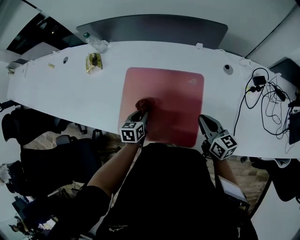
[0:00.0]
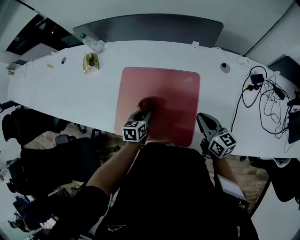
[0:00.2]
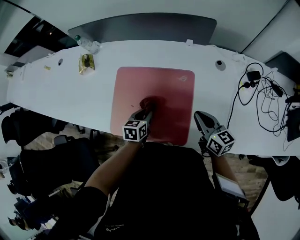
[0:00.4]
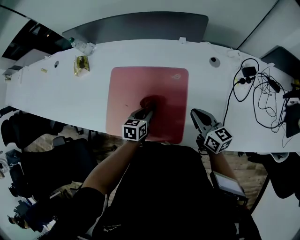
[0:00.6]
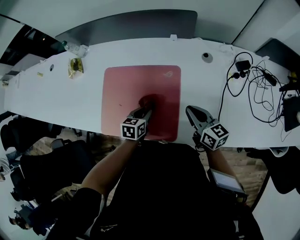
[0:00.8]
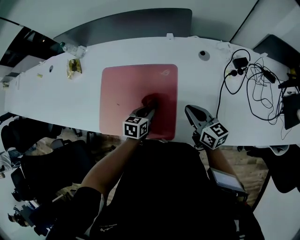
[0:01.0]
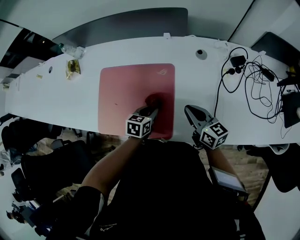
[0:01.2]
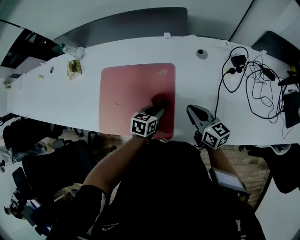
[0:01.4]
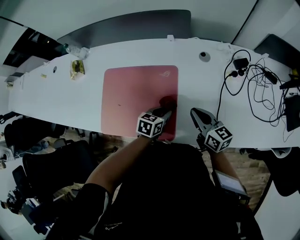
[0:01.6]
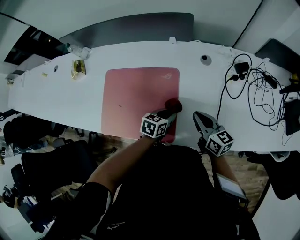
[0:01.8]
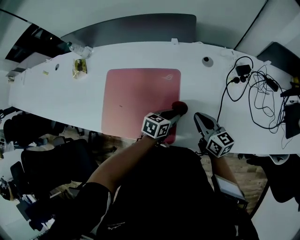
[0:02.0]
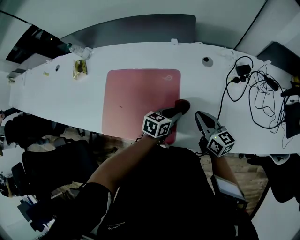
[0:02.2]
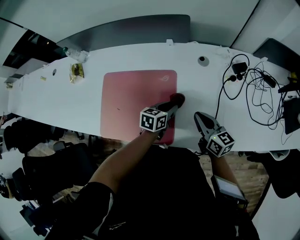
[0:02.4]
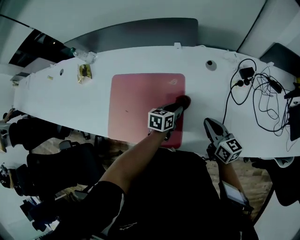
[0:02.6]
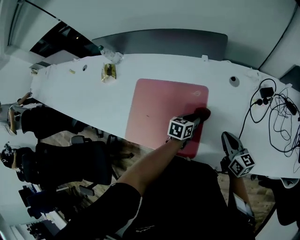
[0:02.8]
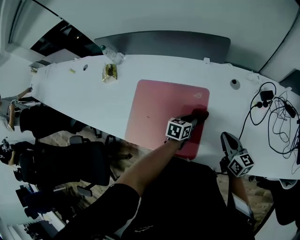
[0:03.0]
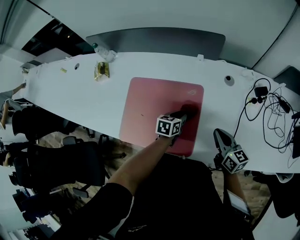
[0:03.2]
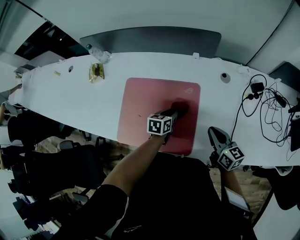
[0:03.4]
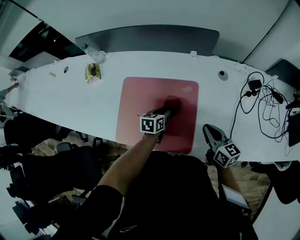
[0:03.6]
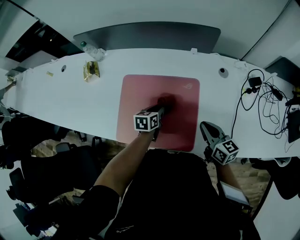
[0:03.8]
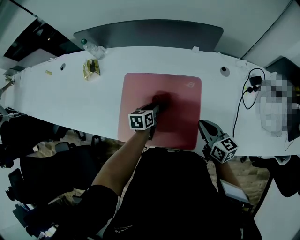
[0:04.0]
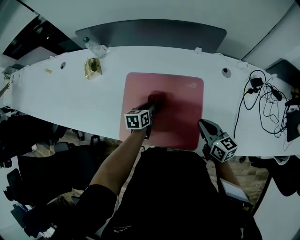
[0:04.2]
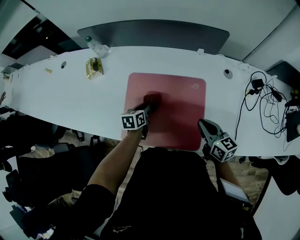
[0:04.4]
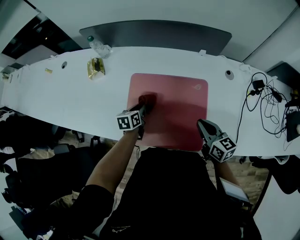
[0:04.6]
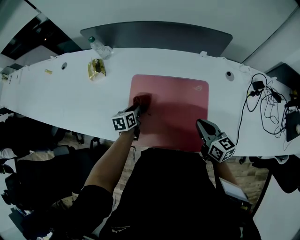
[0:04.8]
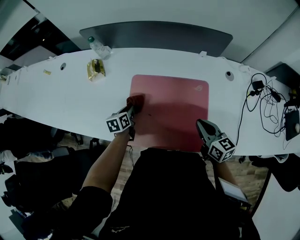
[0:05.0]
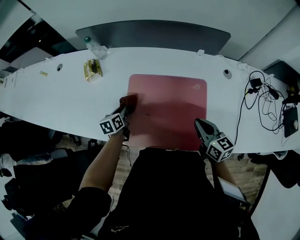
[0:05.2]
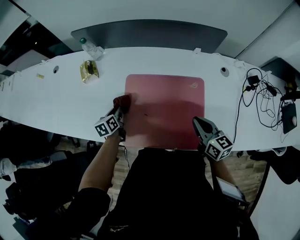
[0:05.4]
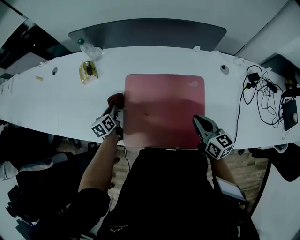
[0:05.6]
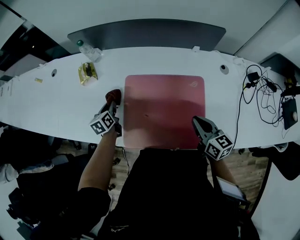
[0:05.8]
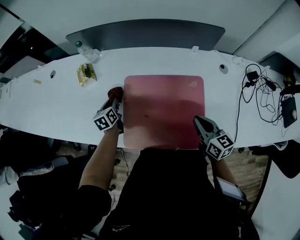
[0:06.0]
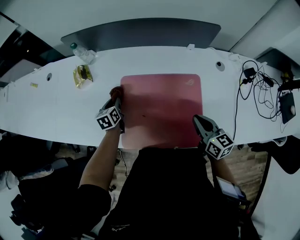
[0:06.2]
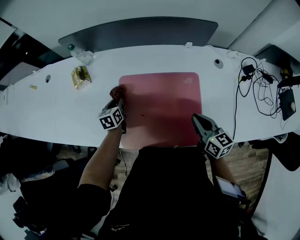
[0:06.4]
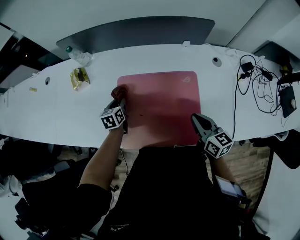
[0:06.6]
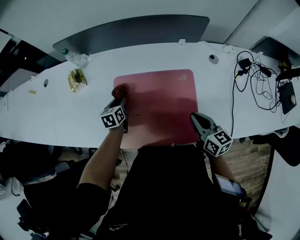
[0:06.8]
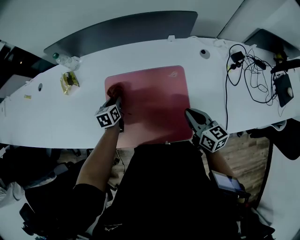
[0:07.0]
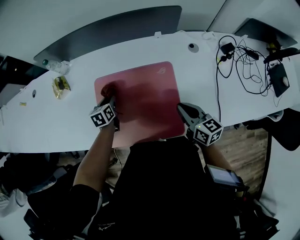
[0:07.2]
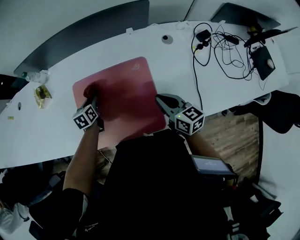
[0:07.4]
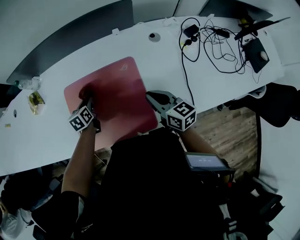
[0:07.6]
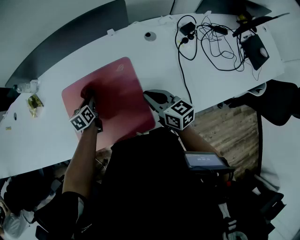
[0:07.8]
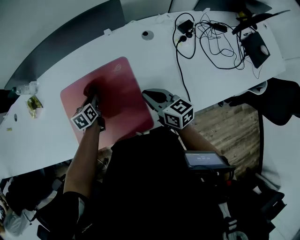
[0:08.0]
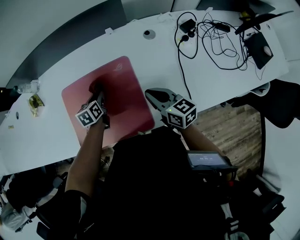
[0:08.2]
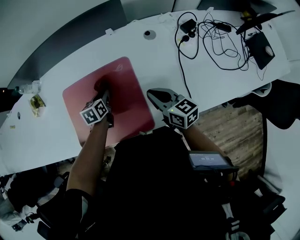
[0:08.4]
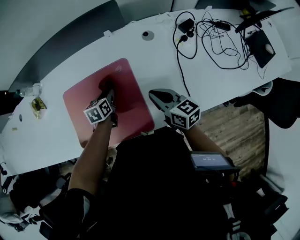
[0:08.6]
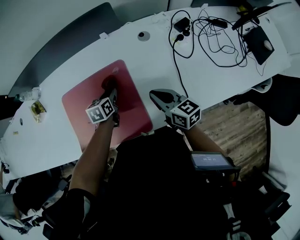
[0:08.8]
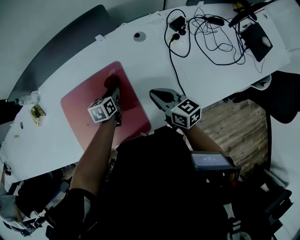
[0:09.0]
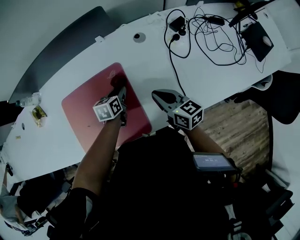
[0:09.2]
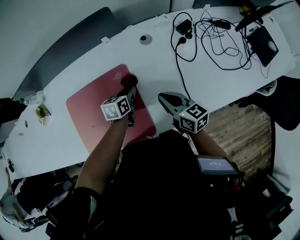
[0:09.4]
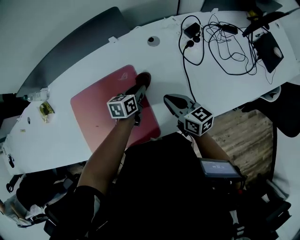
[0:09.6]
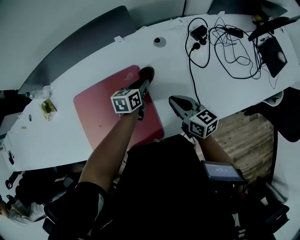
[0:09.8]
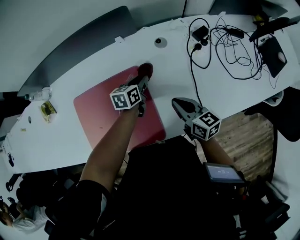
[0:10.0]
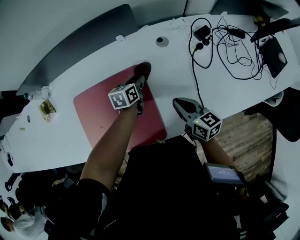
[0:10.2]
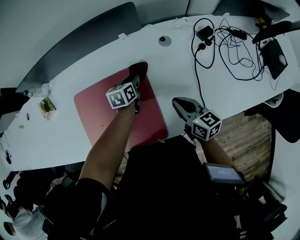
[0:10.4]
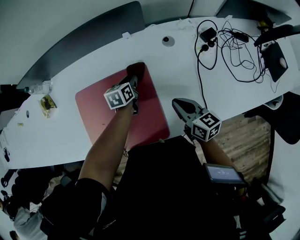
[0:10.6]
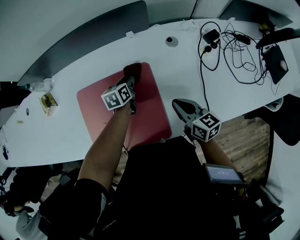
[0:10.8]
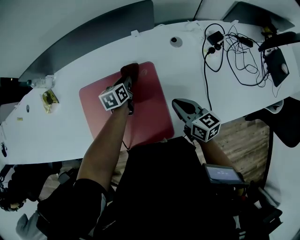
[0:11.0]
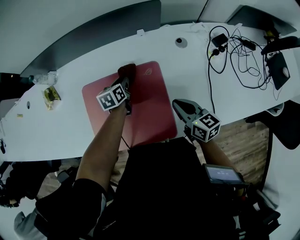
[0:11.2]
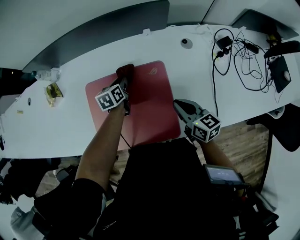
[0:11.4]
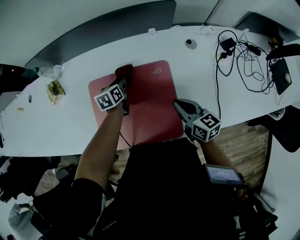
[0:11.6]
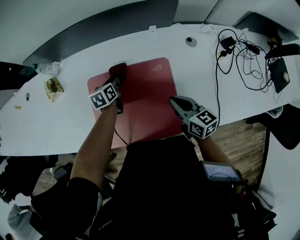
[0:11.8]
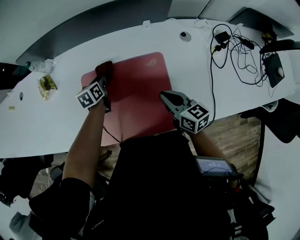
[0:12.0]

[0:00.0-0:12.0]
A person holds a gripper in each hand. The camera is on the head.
0:00.0 to 0:01.6: The left gripper shifts approximately 25 cm to the right, and swivels roughly 20 degrees; the right gripper travels to the right by some 10 cm.
0:01.6 to 0:03.0: The left gripper goes about 5 cm forward.
0:03.0 to 0:04.4: The left gripper is displaced to the left by approximately 25 cm; the right gripper travels to the left by roughly 15 cm.
0:04.4 to 0:06.0: The left gripper heads to the left and forward, covering about 20 cm.
0:06.0 to 0:07.6: The right gripper heads to the right, covering some 10 cm. Meanwhile the left gripper is displaced to the right by approximately 20 cm.
0:07.6 to 0:09.0: The right gripper heads to the right, covering roughly 10 cm. The left gripper moves to the right, about 20 cm.
0:09.0 to 0:10.4: The left gripper goes roughly 10 cm forward, and reaches about 10 cm to the right, then returns.
0:10.4 to 0:12.0: The left gripper moves to the left, about 25 cm. Meanwhile the right gripper shifts some 15 cm to the left.

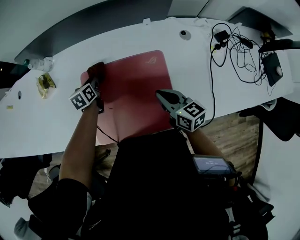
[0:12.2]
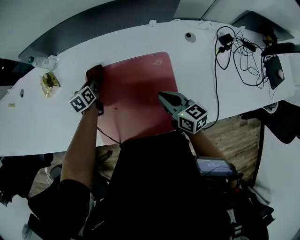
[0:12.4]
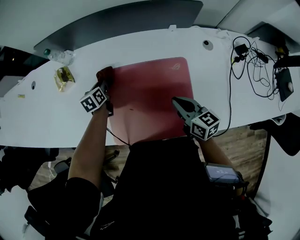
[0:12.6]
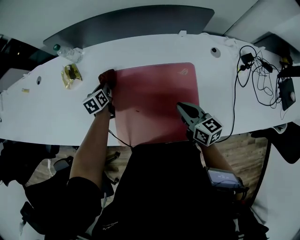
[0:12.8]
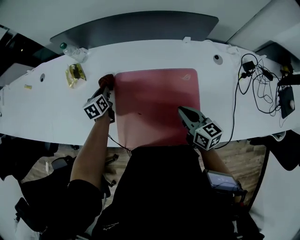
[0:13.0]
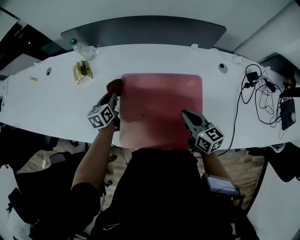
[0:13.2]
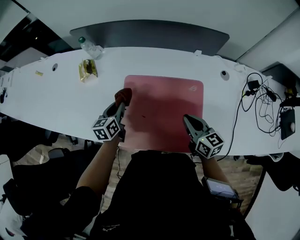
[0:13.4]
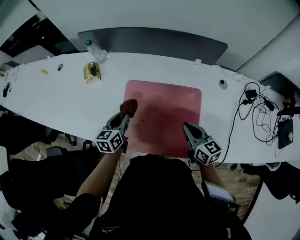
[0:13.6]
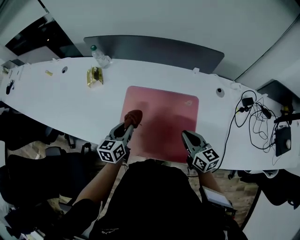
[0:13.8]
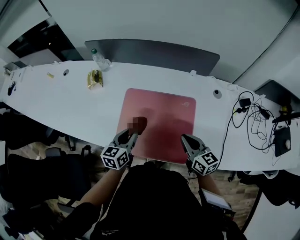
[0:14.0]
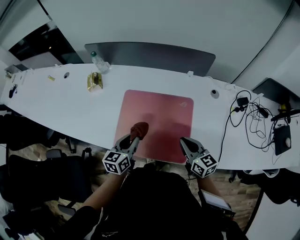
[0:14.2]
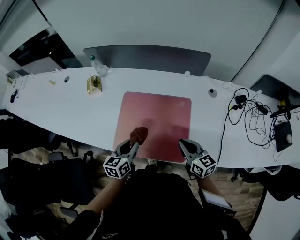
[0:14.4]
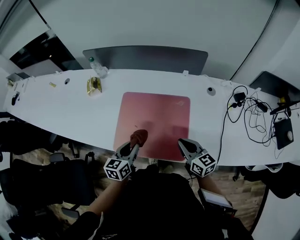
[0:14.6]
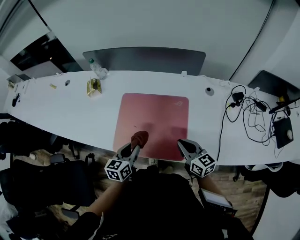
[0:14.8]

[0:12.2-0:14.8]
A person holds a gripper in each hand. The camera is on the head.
0:12.2 to 0:13.4: The left gripper goes roughly 15 cm backward, to the left and upward.
0:13.4 to 0:14.8: The left gripper shifts about 25 cm backward and to the right. The right gripper is displaced backward by about 10 cm.

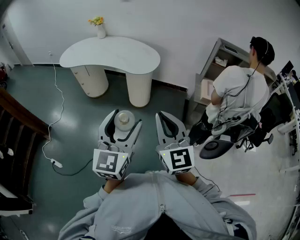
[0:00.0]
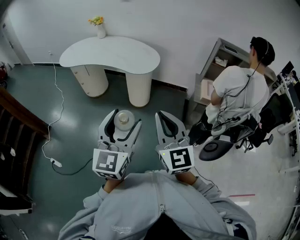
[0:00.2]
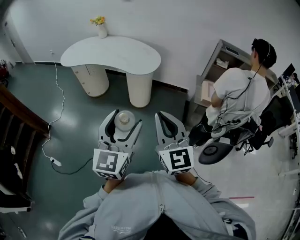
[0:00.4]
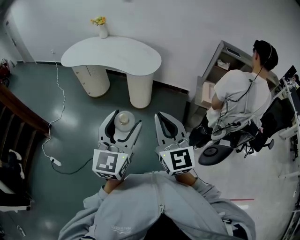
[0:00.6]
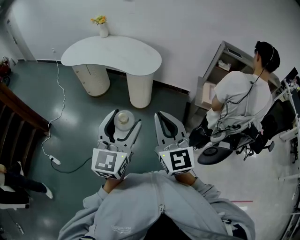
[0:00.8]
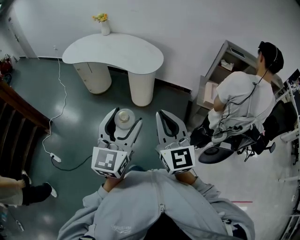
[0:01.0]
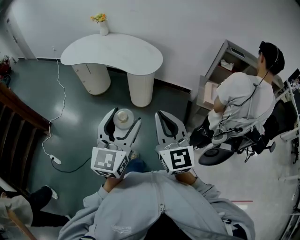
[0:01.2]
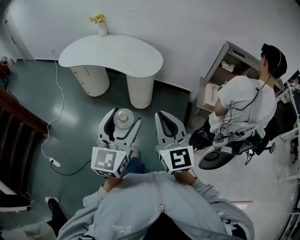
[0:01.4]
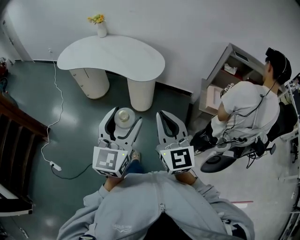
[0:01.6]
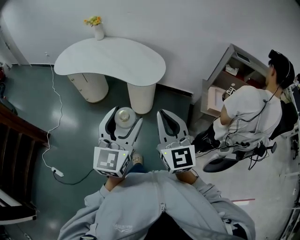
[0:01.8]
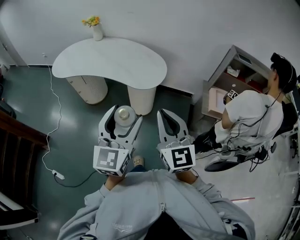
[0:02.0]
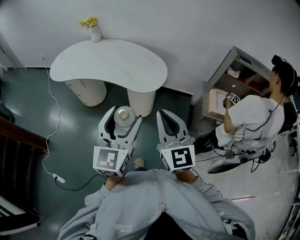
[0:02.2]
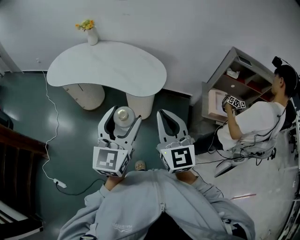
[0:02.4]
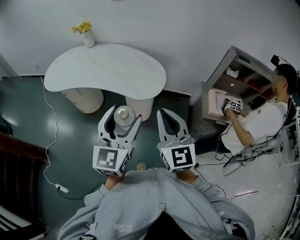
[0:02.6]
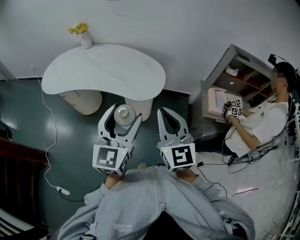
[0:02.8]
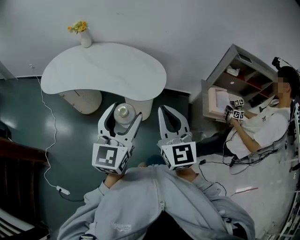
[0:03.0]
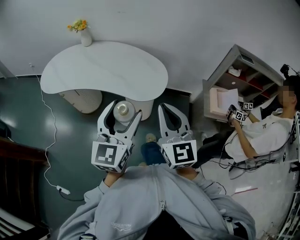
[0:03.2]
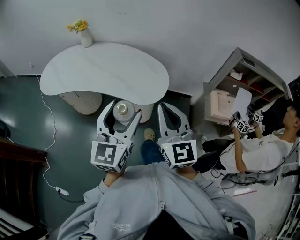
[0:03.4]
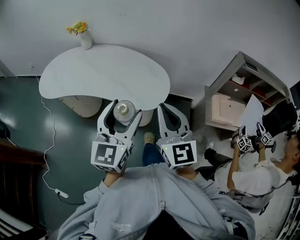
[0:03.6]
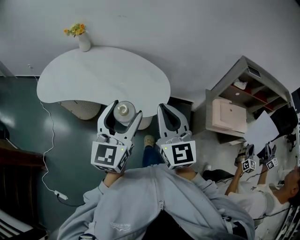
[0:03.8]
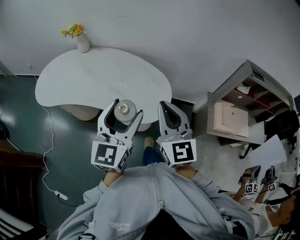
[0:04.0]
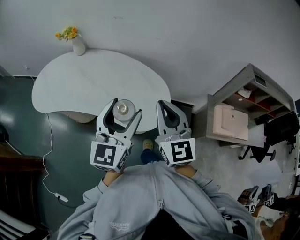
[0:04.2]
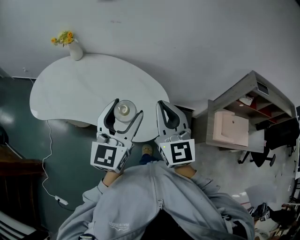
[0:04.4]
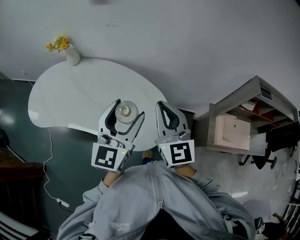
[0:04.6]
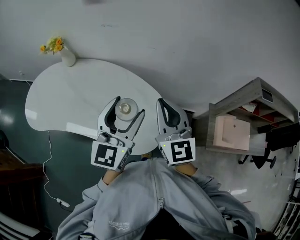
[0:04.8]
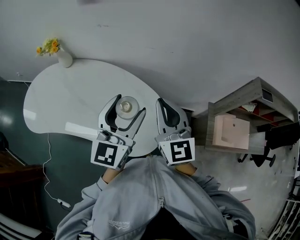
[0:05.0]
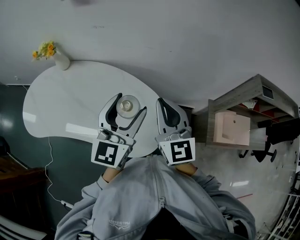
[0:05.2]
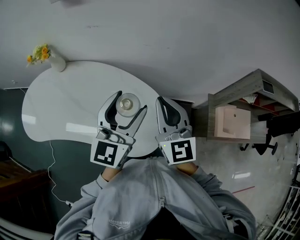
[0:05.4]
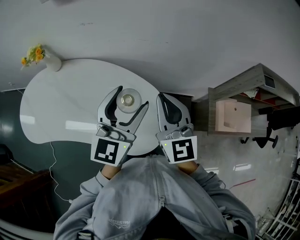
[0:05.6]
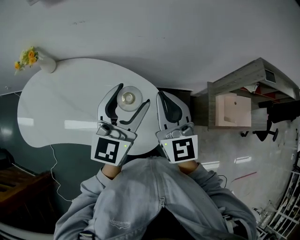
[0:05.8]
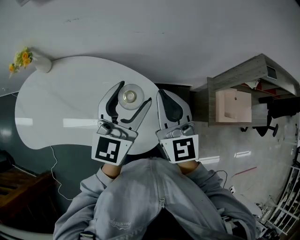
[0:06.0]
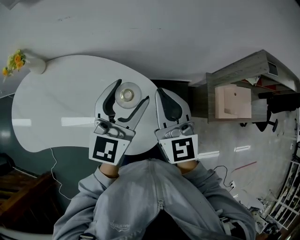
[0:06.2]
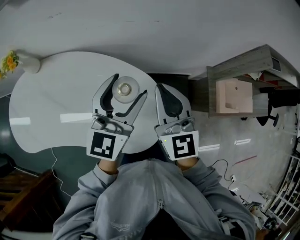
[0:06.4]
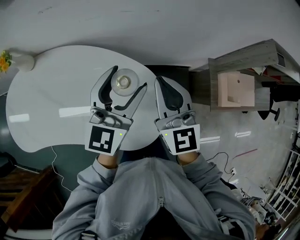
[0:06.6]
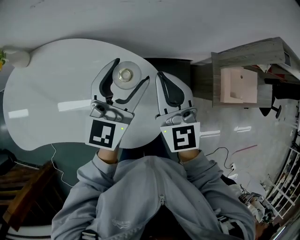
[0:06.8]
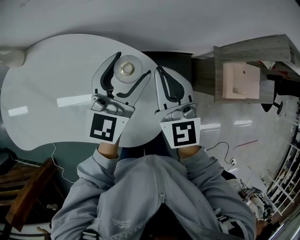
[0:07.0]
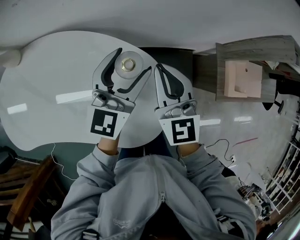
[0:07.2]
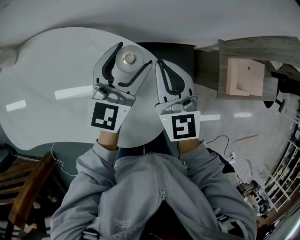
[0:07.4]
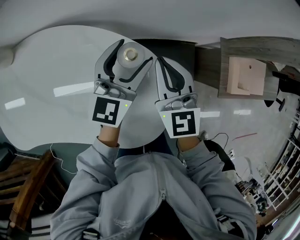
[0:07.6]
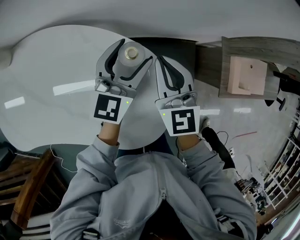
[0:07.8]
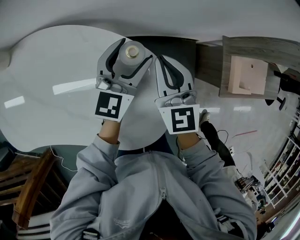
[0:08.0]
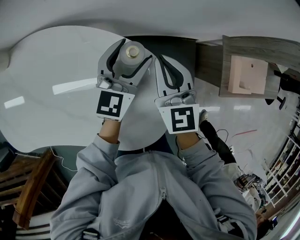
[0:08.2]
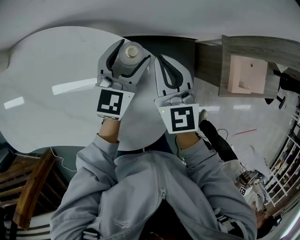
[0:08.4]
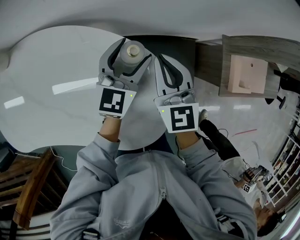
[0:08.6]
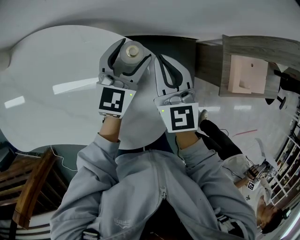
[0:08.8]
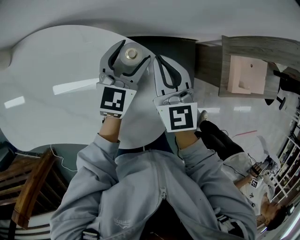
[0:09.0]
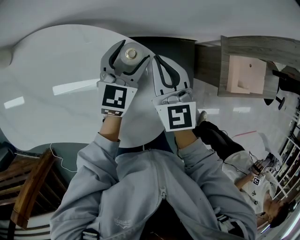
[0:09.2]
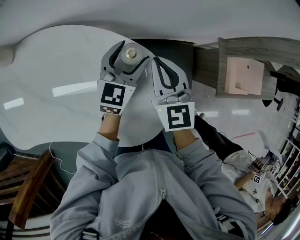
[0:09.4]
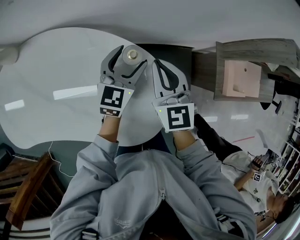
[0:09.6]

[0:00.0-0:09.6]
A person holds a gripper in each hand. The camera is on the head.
0:00.0 to 0:01.6: Both grippers move forward, roughly 10 cm.
0:01.6 to 0:03.2: Both grippers travel together forward, about 25 cm.
0:03.2 to 0:04.8: The grippers both shift forward by about 35 cm.
0:04.8 to 0:06.4: The two grippers go some 15 cm forward and downward.
0:06.4 to 0:08.0: Both grippers move downward and forward, about 20 cm.
0:08.0 to 0:09.6: The grippers stay close to where they were, moving slightly.
